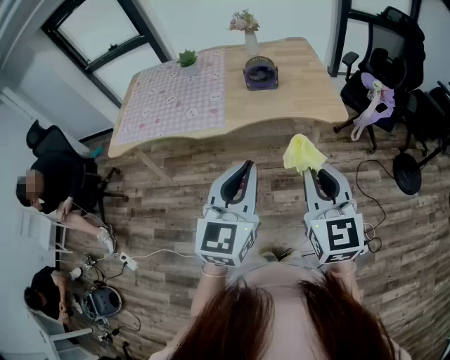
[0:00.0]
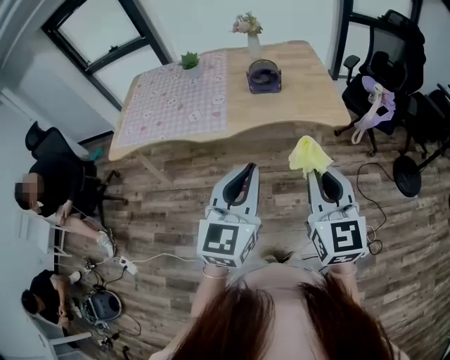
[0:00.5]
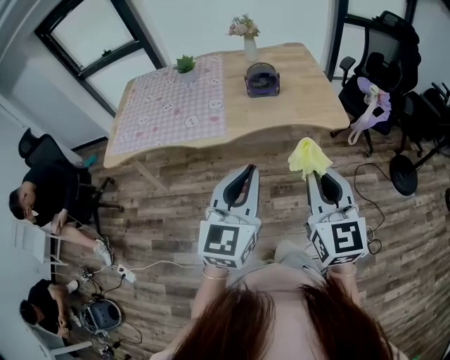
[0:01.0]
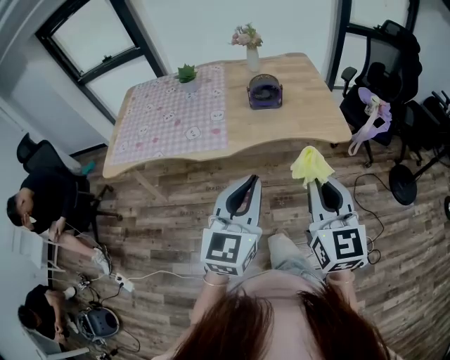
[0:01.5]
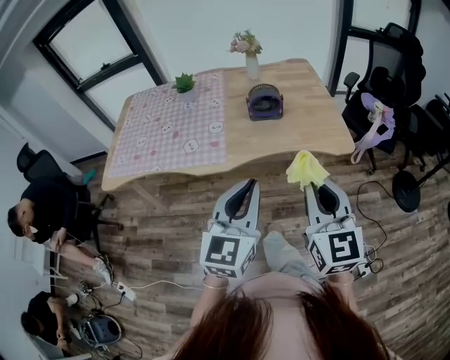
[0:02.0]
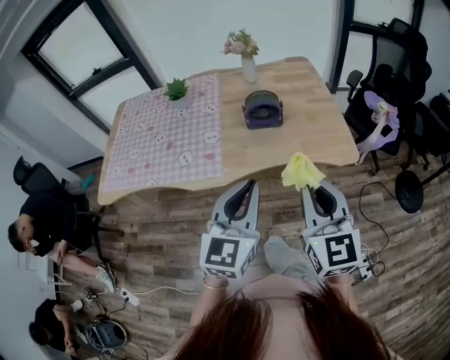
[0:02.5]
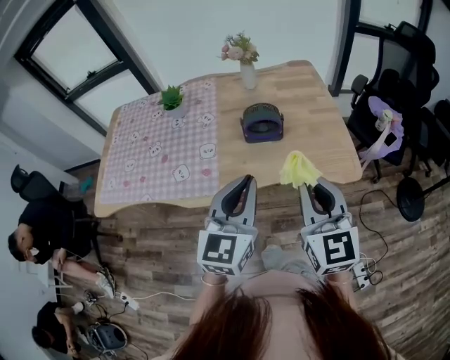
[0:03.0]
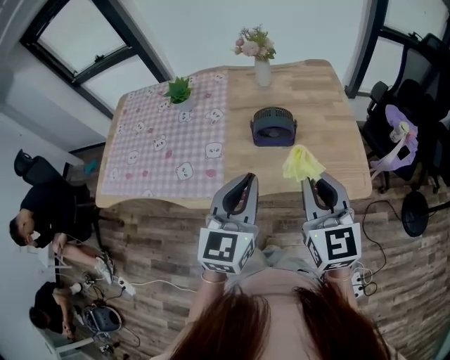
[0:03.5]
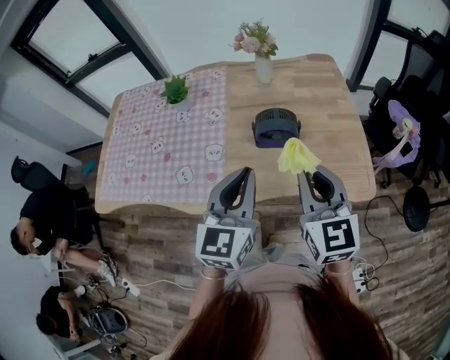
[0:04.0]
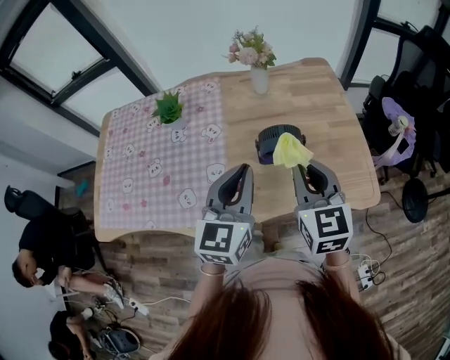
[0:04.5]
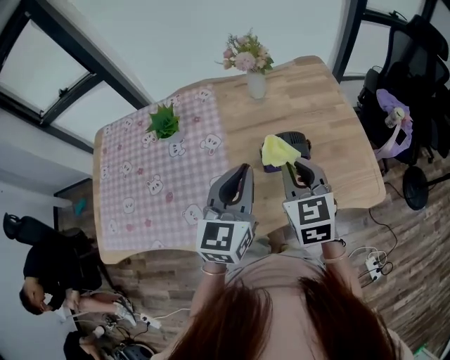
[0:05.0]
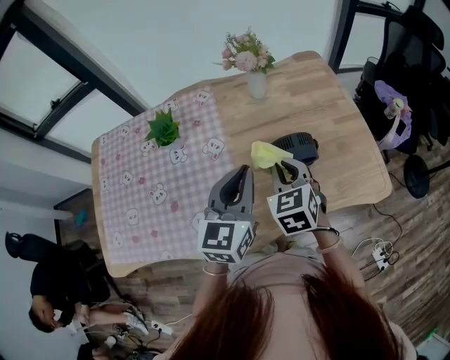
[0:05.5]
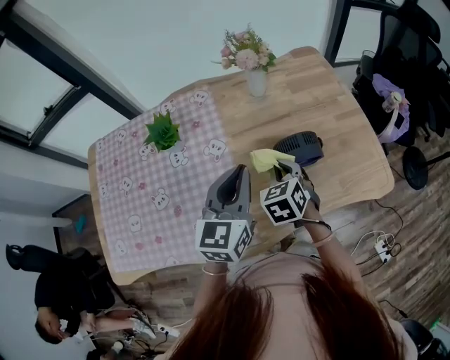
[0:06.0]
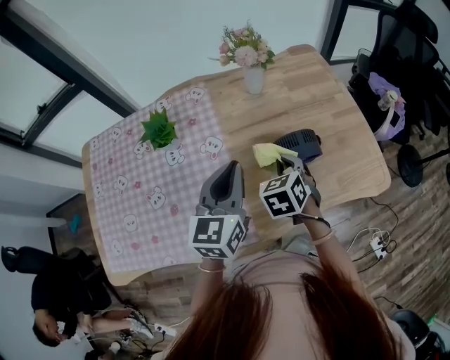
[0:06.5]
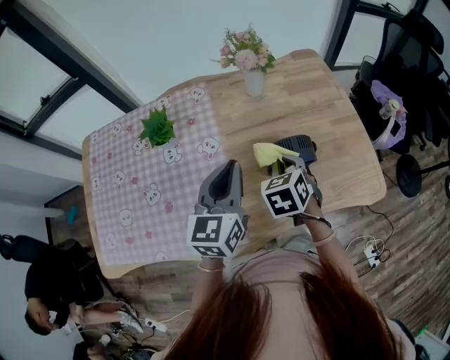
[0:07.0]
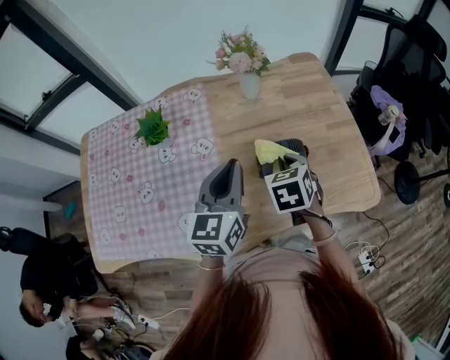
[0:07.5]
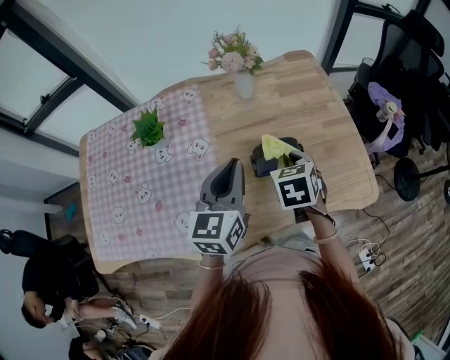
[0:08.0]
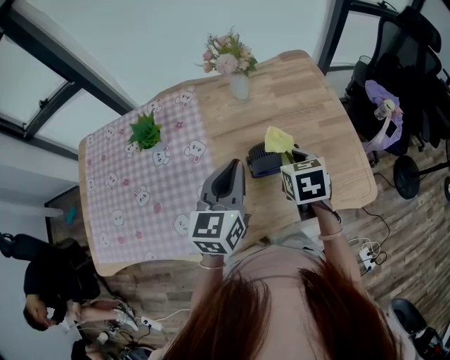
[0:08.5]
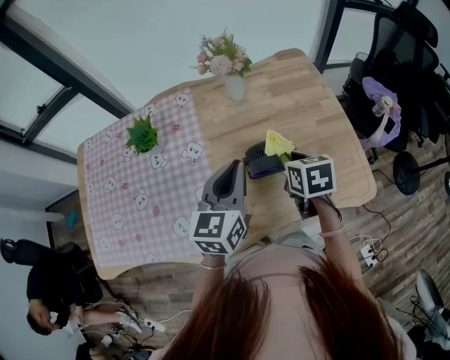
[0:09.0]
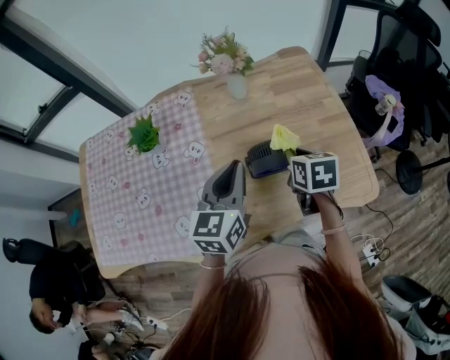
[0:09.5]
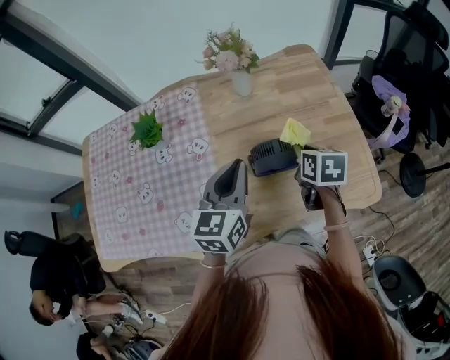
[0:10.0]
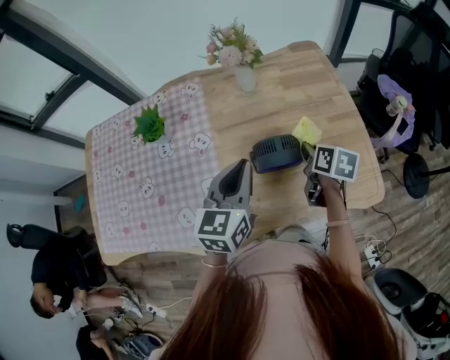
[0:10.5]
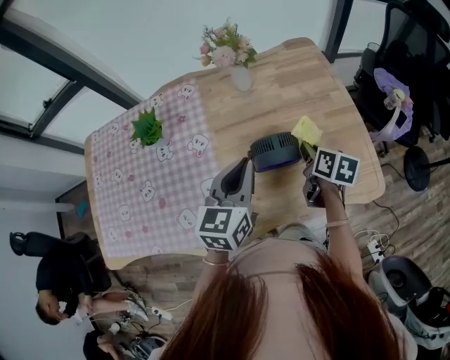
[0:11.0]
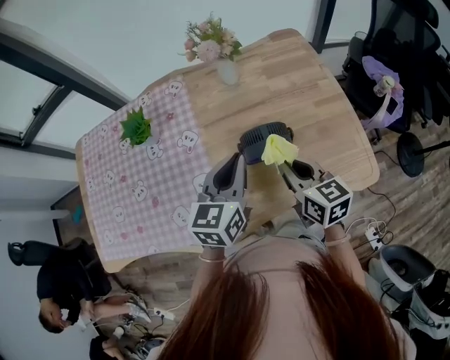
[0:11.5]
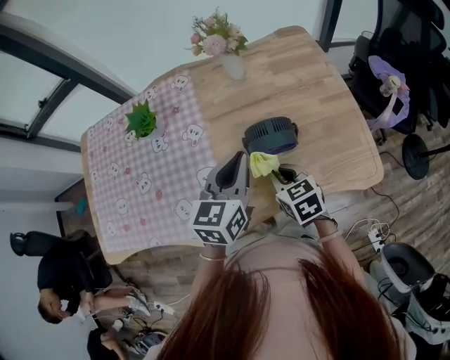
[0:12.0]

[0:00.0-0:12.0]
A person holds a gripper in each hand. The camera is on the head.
0:00.0 to 0:02.0: The two grippers go about 10 cm forward.
0:02.0 to 0:04.0: Both grippers move forward, roughly 30 cm.
0:04.0 to 0:06.0: The left gripper travels forward and to the left by some 20 cm; the right gripper shifts approximately 30 cm downward, forward and to the left, and tilts its fingers approximately 40 degrees downward.
0:06.0 to 0:08.0: The left gripper changes place by about 5 cm. The right gripper shifts roughly 10 cm to the right.
0:08.0 to 0:10.0: The right gripper shifts about 5 cm to the right, and turns by roughly 30 degrees.
0:10.0 to 0:12.0: The right gripper goes some 15 cm backward and to the left, and changes its angle by approximately 30 degrees.

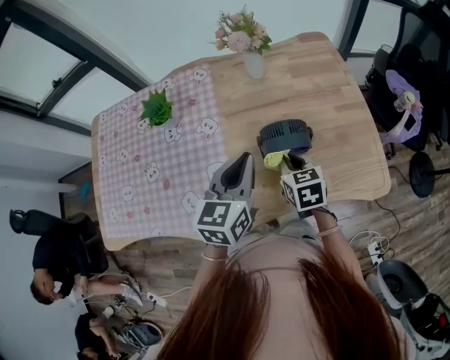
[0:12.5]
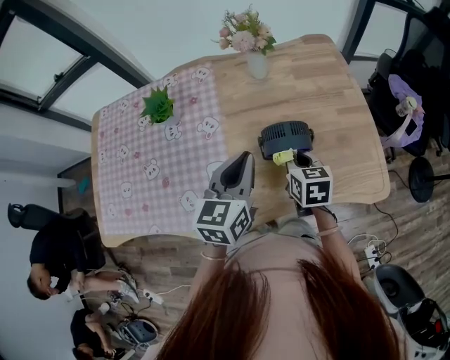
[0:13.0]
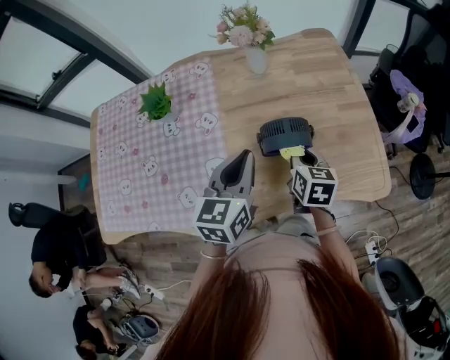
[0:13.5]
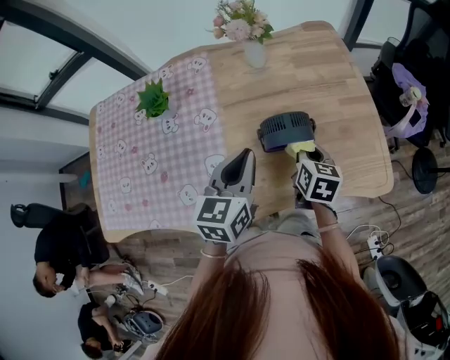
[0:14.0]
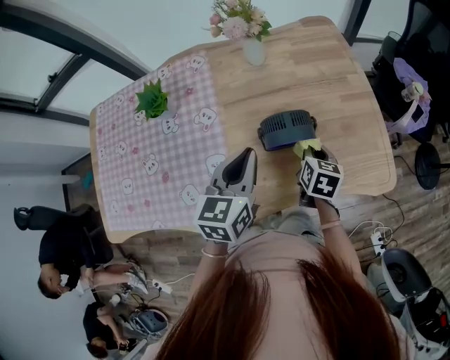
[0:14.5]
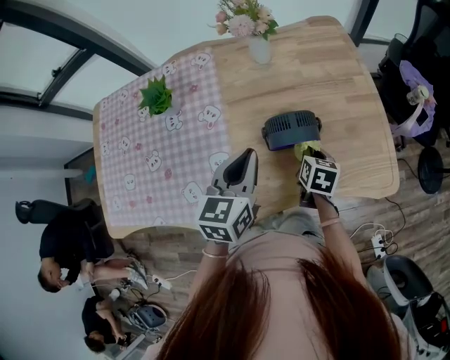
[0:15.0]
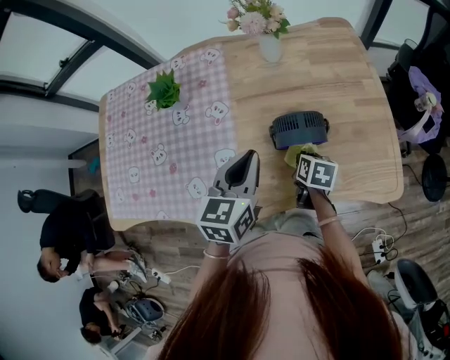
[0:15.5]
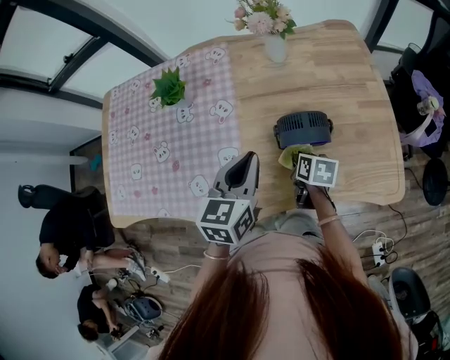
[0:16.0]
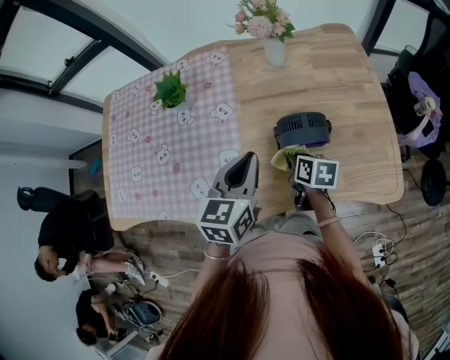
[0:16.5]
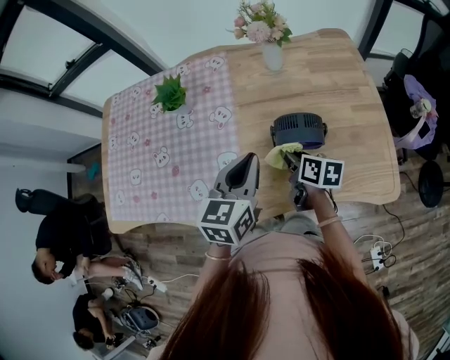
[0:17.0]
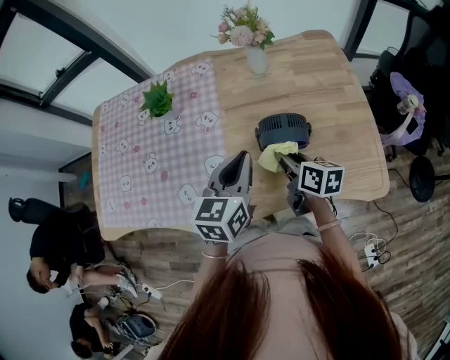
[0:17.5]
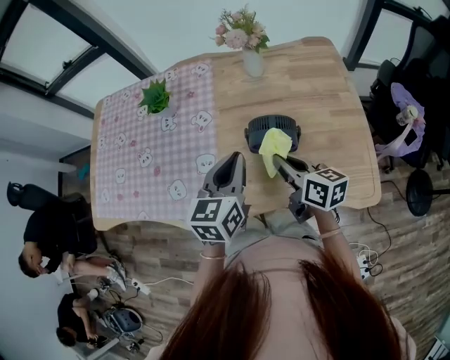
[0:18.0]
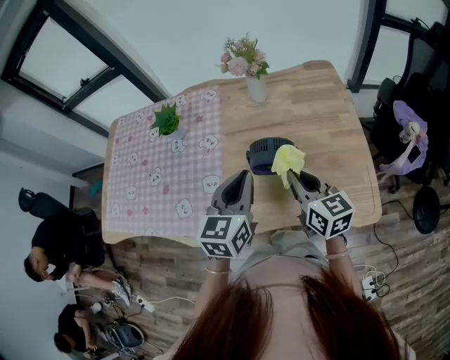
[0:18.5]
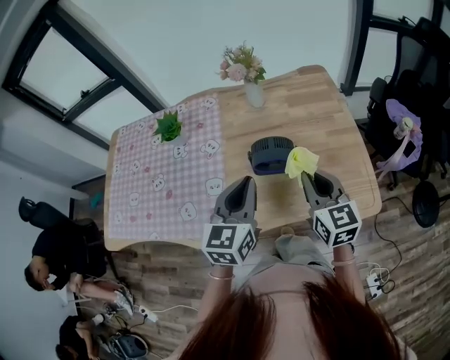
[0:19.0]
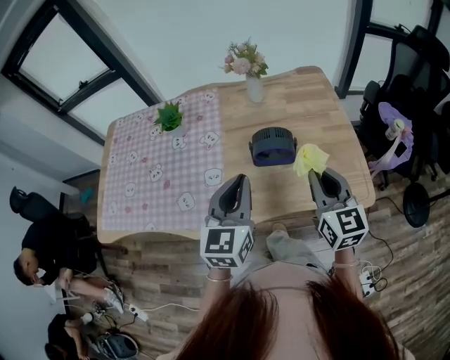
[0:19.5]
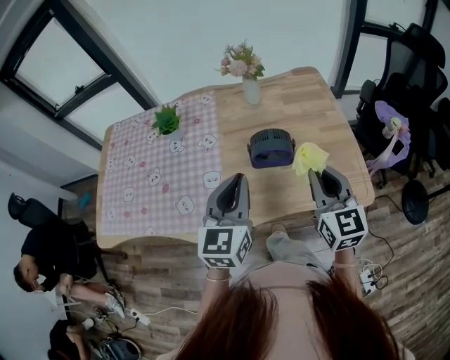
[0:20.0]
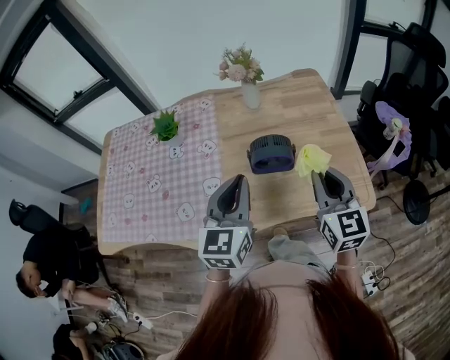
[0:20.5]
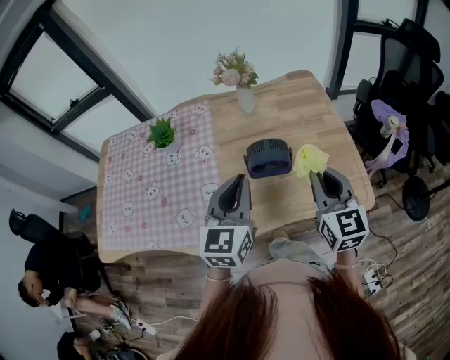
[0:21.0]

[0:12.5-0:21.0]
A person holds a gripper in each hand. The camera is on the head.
0:12.5 to 0:14.5: The right gripper shifts some 10 cm to the right, and swivels roughly 30 degrees.
0:14.5 to 0:16.5: The right gripper goes some 10 cm to the left, and rotates about 30 degrees.
0:16.5 to 0:19.0: The left gripper moves backward, to the right and upward, approximately 10 cm. Meanwhile the right gripper is displaced upward, to the right and backward by roughly 25 cm, and rotates about 50 degrees.
0:19.0 to 0:21.0: The right gripper changes place by some 5 cm.

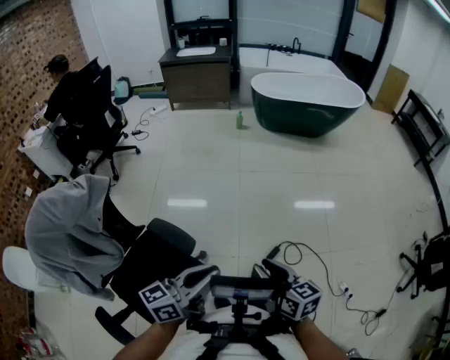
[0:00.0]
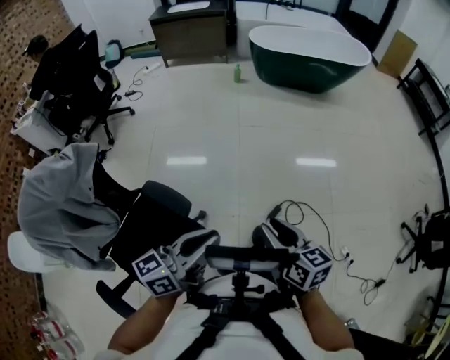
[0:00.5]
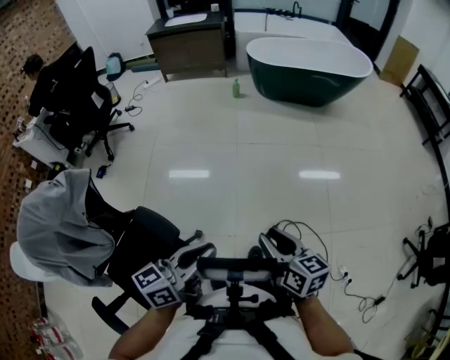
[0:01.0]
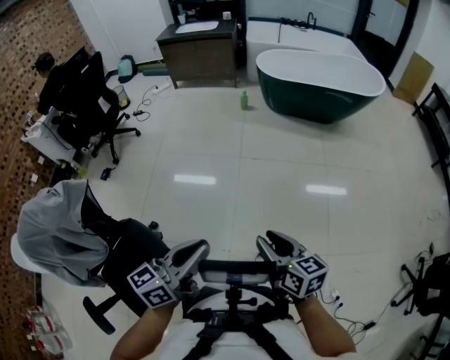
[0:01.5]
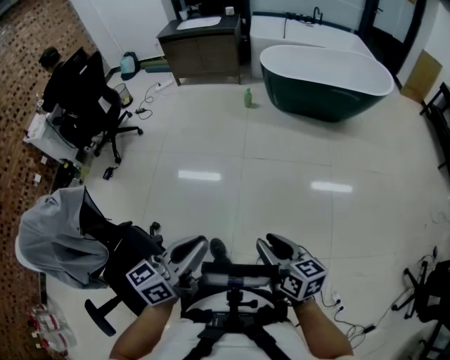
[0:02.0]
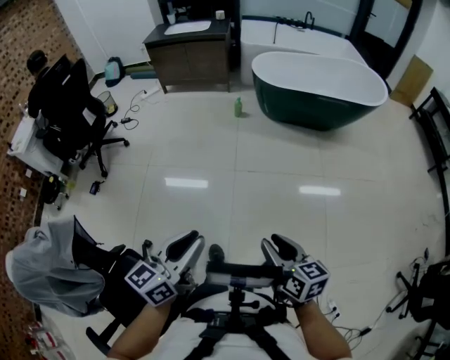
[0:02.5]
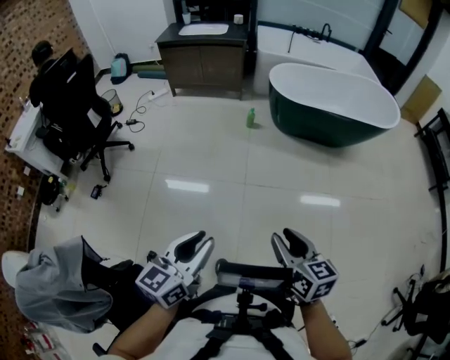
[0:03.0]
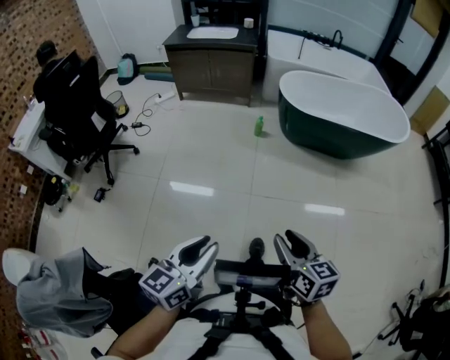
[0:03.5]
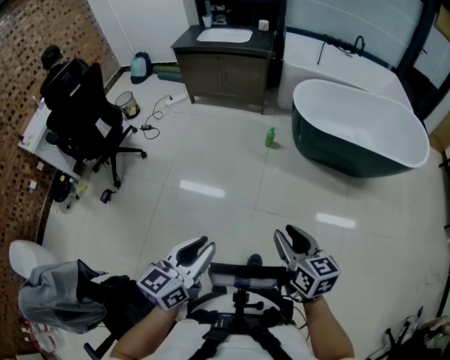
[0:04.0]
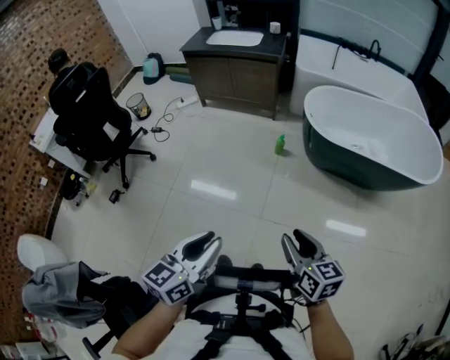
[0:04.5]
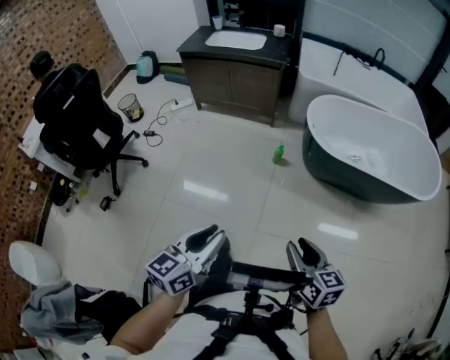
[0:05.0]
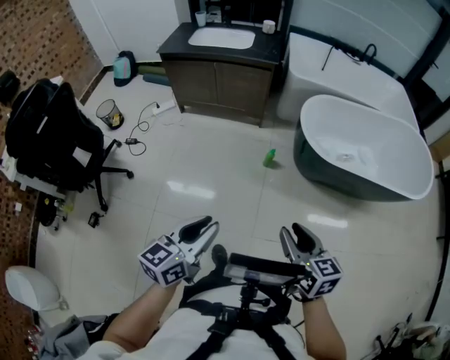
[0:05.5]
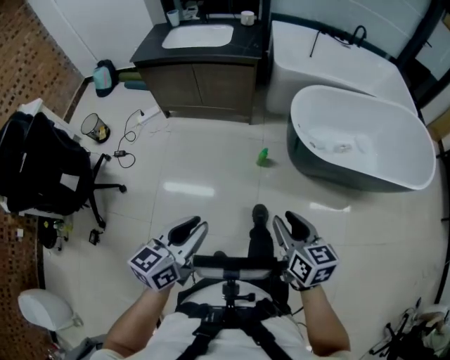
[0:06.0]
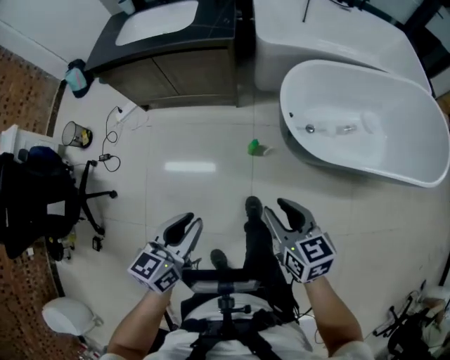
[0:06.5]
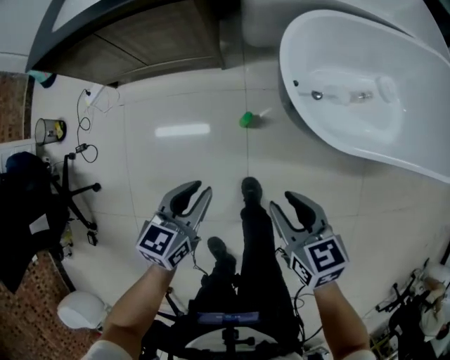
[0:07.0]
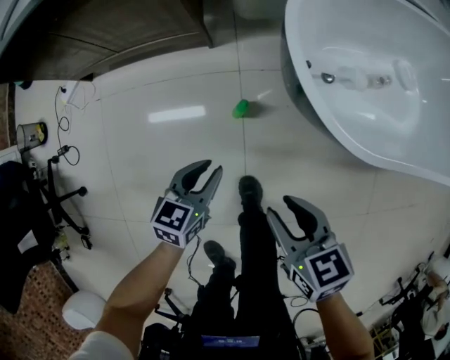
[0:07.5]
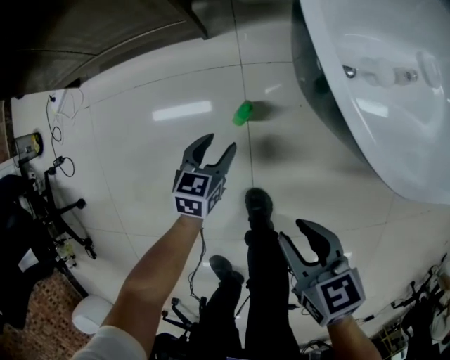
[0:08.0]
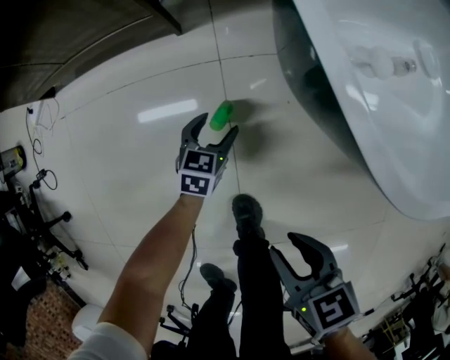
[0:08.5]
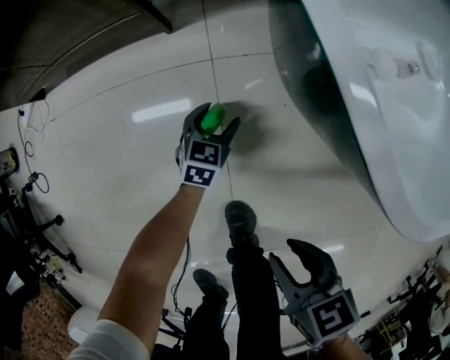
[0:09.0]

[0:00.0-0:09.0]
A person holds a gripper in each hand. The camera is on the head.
0:00.0 to 0:02.0: The left gripper goes some 25 cm forward, while the right gripper goes roughly 30 cm forward and to the right.
0:02.0 to 0:04.5: The two grippers travel together, forward, some 50 cm. The left gripper turns by roughly 20 degrees.
0:04.5 to 0:07.0: The two grippers travel together, forward, about 60 cm. The left gripper travels downward by roughly 30 cm, and rotates some 30 degrees.
0:07.0 to 0:09.0: The left gripper moves downward and forward, some 50 cm, rotates approximately 20 degrees, and opens its fingers. Meanwhile the right gripper heads downward, covering approximately 30 cm.
